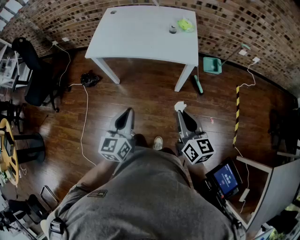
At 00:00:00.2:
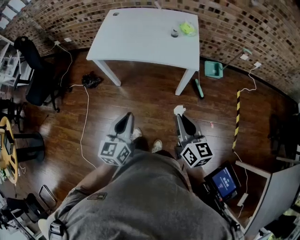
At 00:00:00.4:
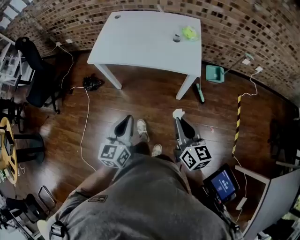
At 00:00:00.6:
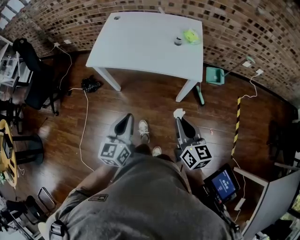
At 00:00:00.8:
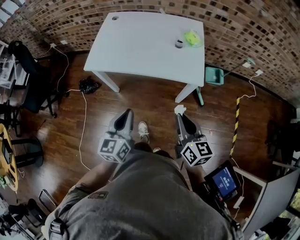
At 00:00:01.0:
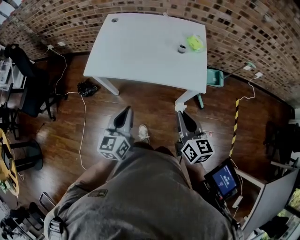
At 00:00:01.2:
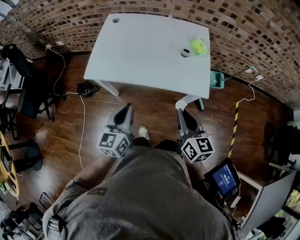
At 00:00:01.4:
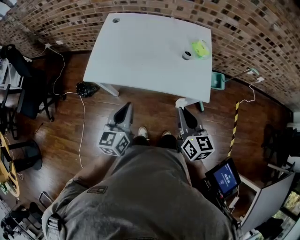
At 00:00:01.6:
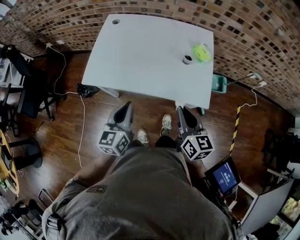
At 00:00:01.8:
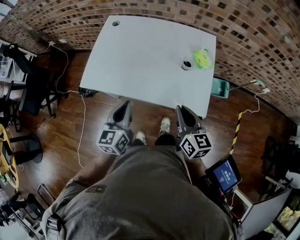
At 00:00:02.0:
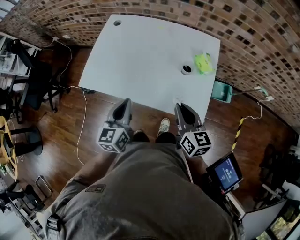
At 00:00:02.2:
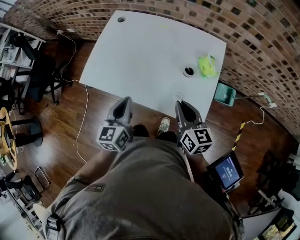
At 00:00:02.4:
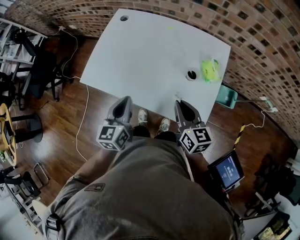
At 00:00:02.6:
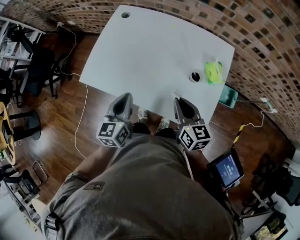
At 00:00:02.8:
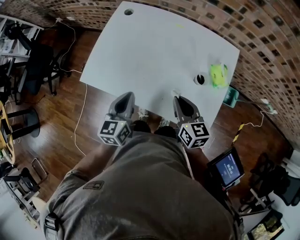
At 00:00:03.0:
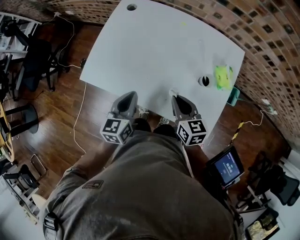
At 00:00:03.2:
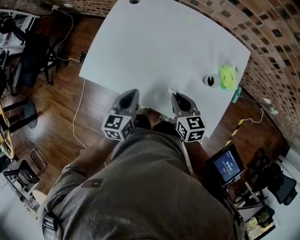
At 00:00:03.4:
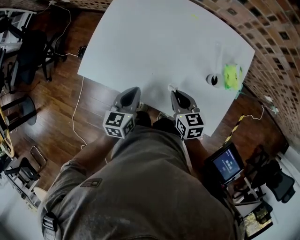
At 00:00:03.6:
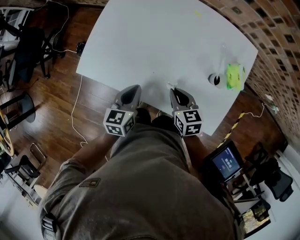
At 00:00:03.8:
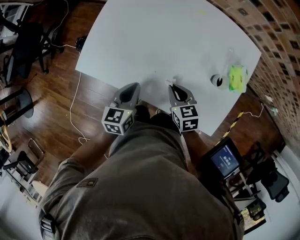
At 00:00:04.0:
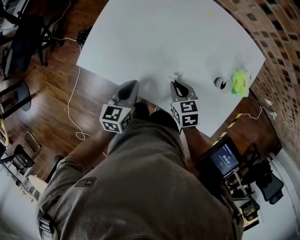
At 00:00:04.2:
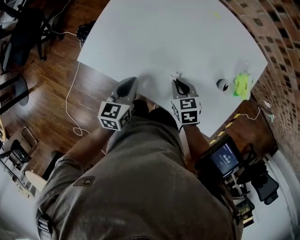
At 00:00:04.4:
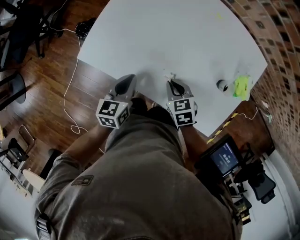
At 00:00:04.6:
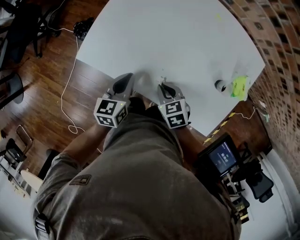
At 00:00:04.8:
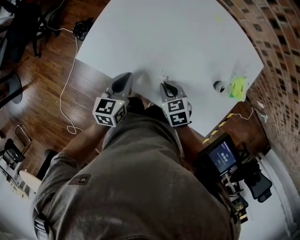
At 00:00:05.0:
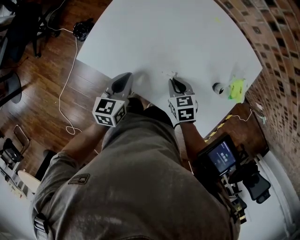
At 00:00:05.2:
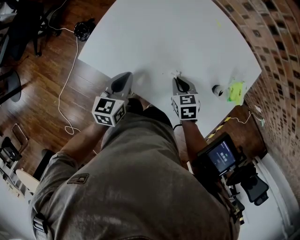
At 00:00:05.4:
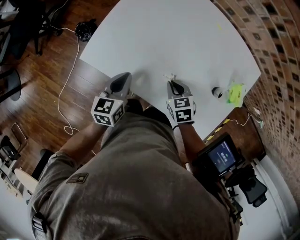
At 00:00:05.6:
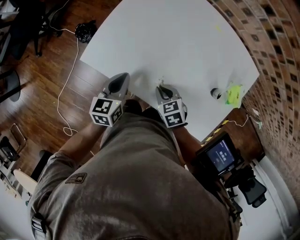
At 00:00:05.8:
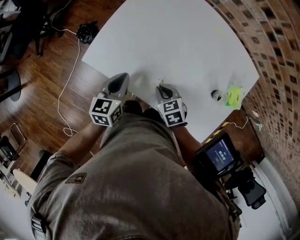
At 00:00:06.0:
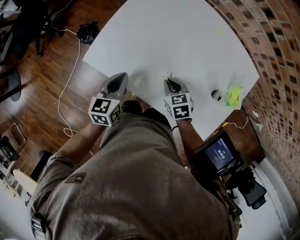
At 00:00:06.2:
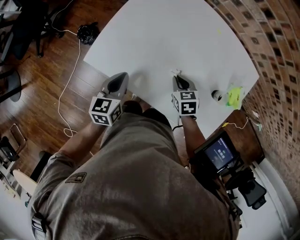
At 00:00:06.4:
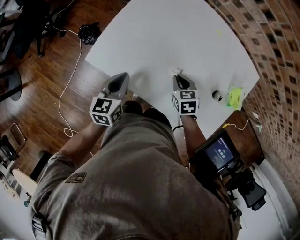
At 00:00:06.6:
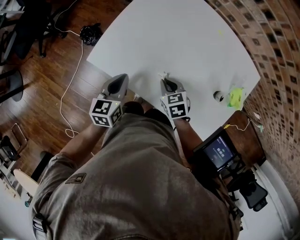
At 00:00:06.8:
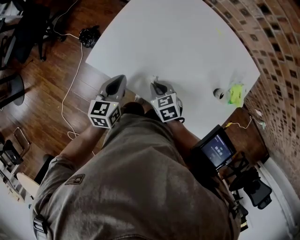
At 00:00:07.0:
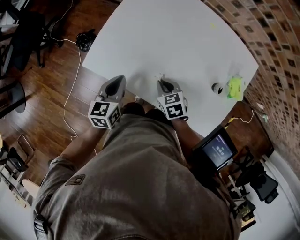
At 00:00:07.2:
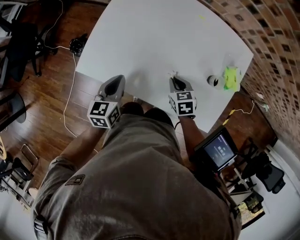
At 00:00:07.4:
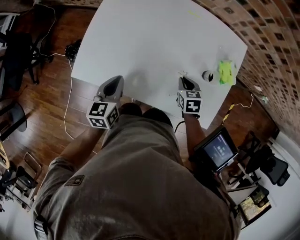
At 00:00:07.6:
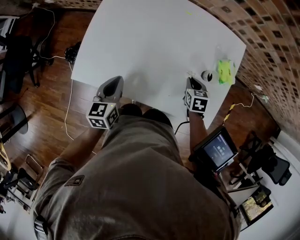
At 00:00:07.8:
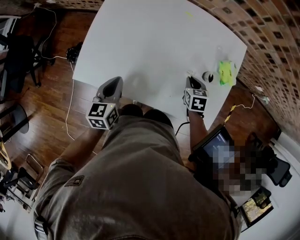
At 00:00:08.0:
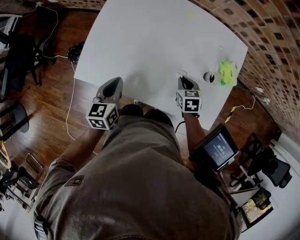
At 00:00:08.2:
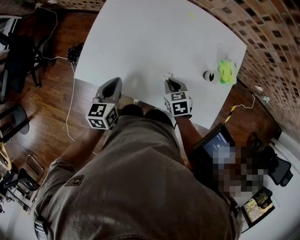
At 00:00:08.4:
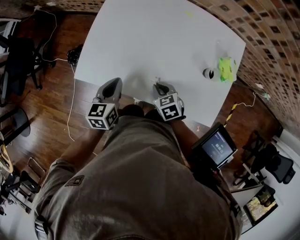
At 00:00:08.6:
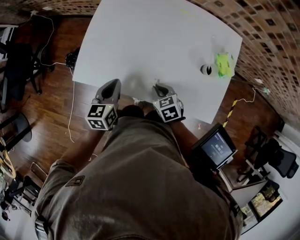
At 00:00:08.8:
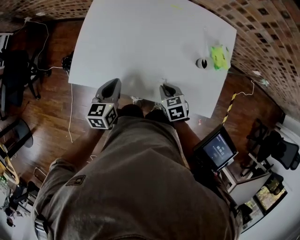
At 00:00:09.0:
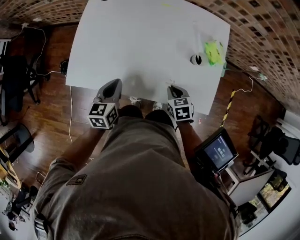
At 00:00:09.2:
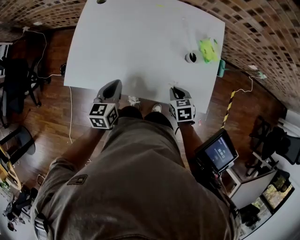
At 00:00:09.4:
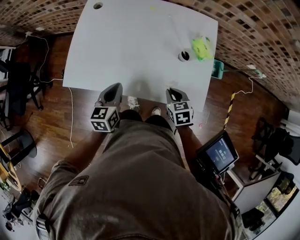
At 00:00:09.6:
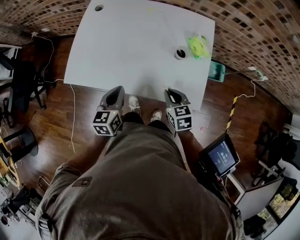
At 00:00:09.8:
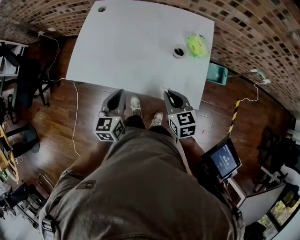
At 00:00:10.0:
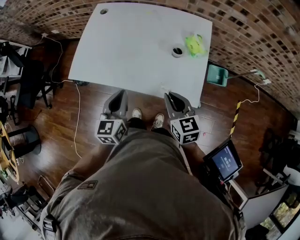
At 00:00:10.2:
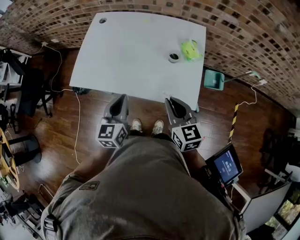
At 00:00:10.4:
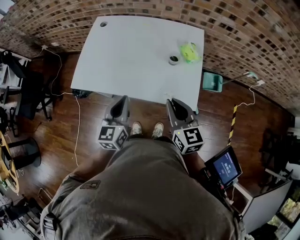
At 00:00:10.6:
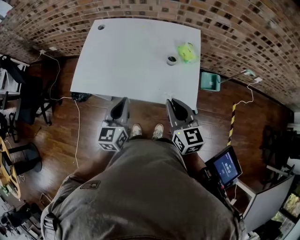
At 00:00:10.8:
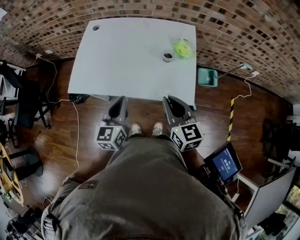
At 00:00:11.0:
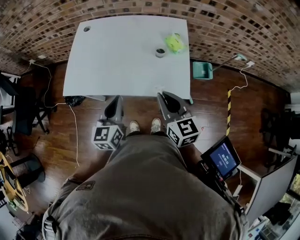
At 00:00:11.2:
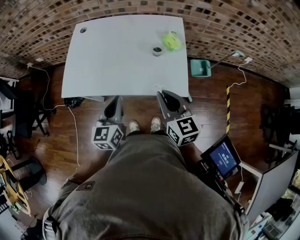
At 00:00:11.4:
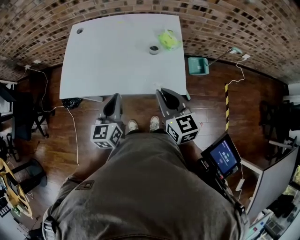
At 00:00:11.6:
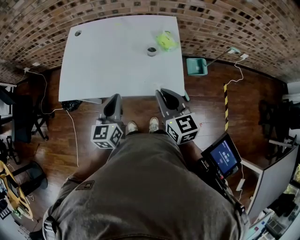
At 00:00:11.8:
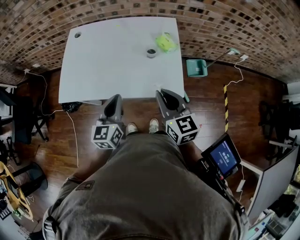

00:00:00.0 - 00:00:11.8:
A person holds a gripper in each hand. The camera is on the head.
00:00:00.0 - 00:00:01.4: Both grippers travel together forward, roughly 25 cm.
00:00:01.4 - 00:00:03.0: Both grippers travel together forward and downward, about 20 cm. The right gripper rotates some 30 degrees.
00:00:03.0 - 00:00:04.4: The two grippers go approximately 15 cm downward and to the left. The right gripper rotates approximately 30 degrees.
00:00:04.4 - 00:00:06.0: The left gripper ends up some 5 cm from where it was.
00:00:06.0 - 00:00:07.4: The right gripper shifts by some 15 cm, and swivels some 30 degrees.
00:00:07.4 - 00:00:08.8: The right gripper swings left and right, roughly 20 cm each way, with 2 reversals.
00:00:08.8 - 00:00:10.4: Both grippers travel together upward, backward and to the right, some 25 cm. The left gripper changes its angle by roughly 20 degrees; the right gripper tilts its fingers about 40 degrees upward.
00:00:10.4 - 00:00:11.8: The grippers make only small movements.

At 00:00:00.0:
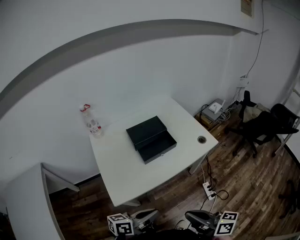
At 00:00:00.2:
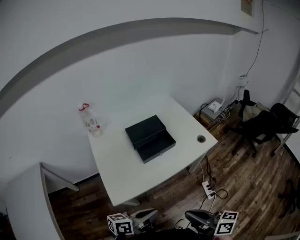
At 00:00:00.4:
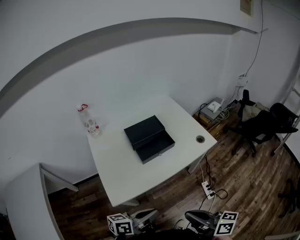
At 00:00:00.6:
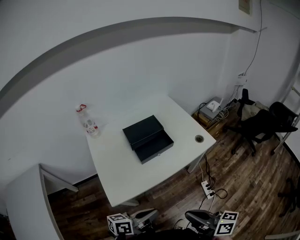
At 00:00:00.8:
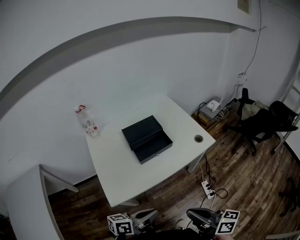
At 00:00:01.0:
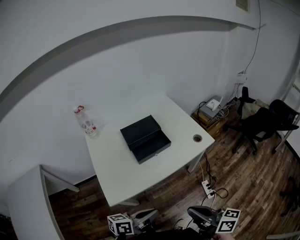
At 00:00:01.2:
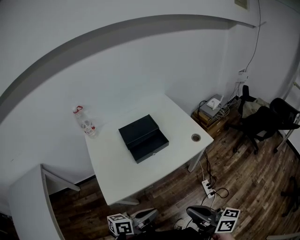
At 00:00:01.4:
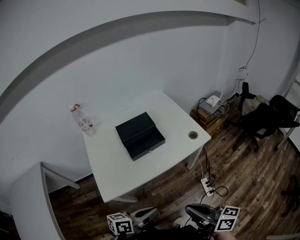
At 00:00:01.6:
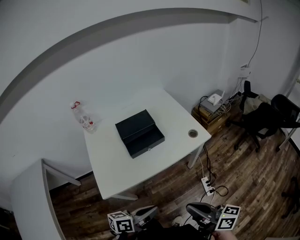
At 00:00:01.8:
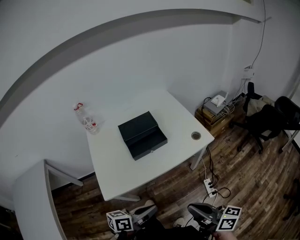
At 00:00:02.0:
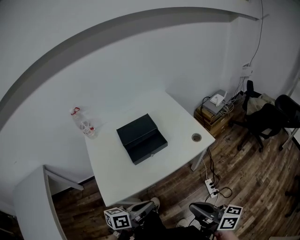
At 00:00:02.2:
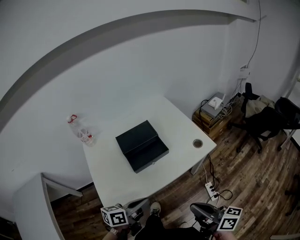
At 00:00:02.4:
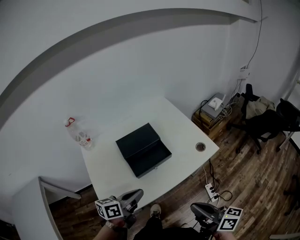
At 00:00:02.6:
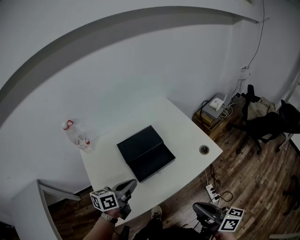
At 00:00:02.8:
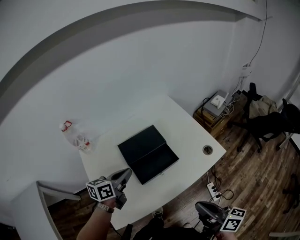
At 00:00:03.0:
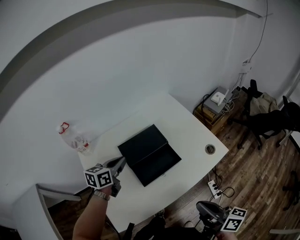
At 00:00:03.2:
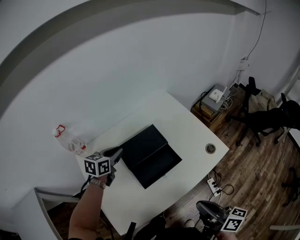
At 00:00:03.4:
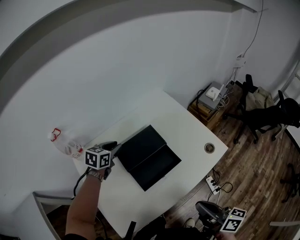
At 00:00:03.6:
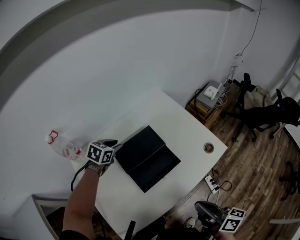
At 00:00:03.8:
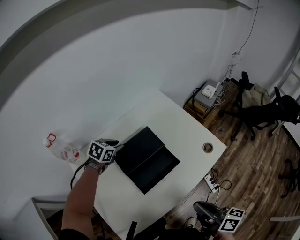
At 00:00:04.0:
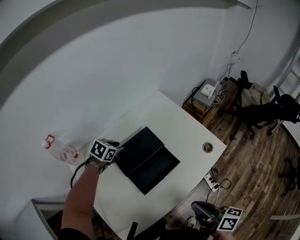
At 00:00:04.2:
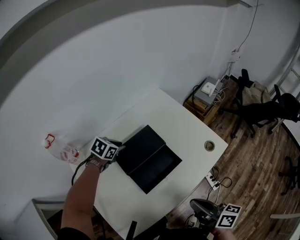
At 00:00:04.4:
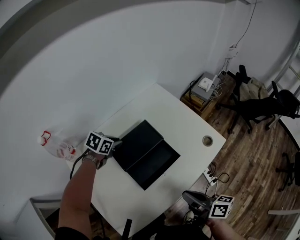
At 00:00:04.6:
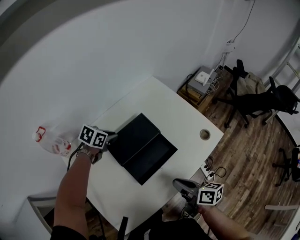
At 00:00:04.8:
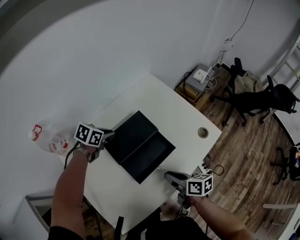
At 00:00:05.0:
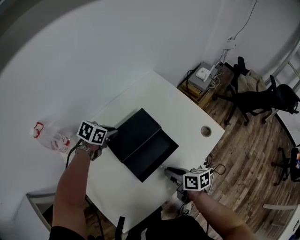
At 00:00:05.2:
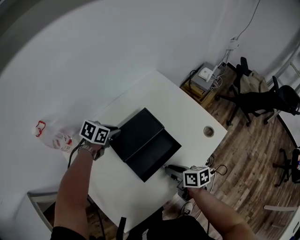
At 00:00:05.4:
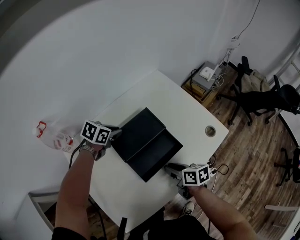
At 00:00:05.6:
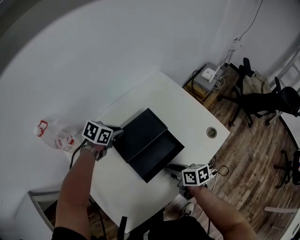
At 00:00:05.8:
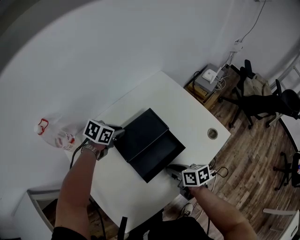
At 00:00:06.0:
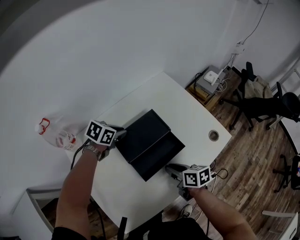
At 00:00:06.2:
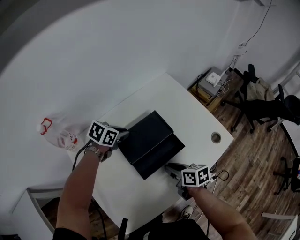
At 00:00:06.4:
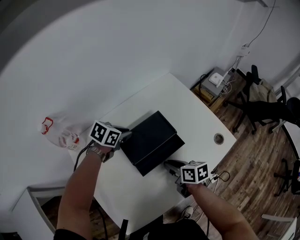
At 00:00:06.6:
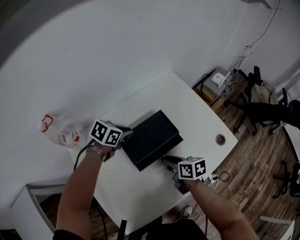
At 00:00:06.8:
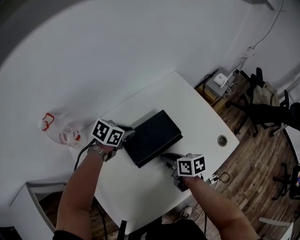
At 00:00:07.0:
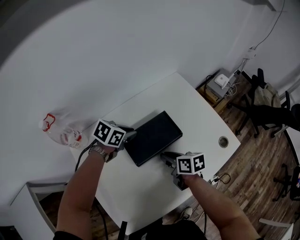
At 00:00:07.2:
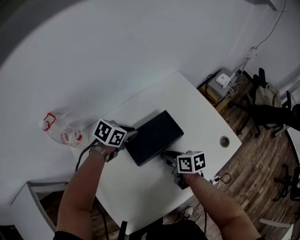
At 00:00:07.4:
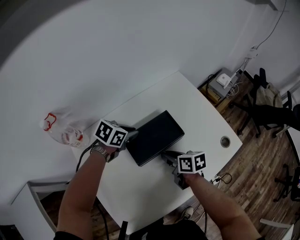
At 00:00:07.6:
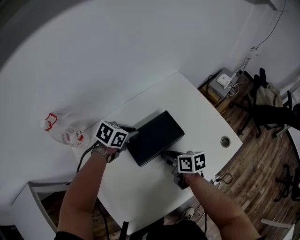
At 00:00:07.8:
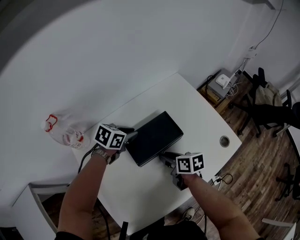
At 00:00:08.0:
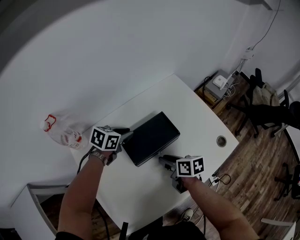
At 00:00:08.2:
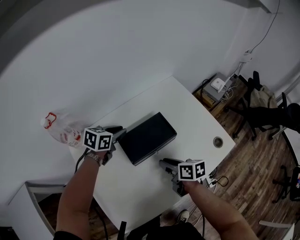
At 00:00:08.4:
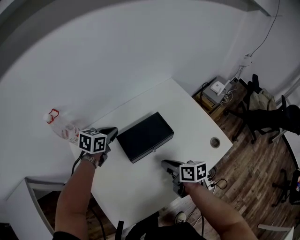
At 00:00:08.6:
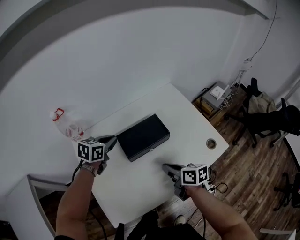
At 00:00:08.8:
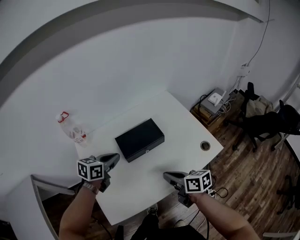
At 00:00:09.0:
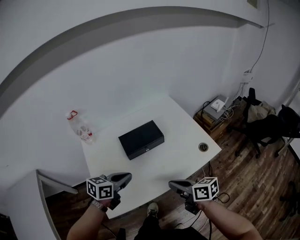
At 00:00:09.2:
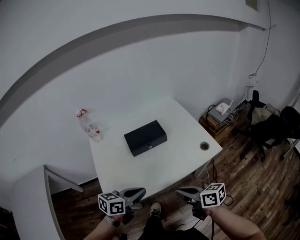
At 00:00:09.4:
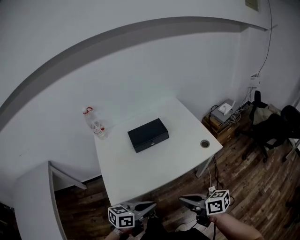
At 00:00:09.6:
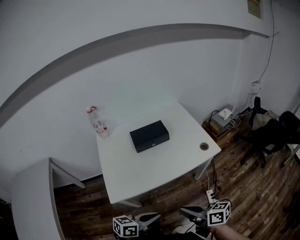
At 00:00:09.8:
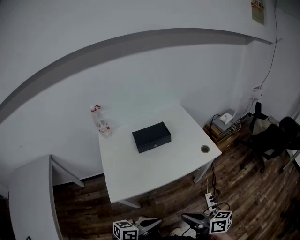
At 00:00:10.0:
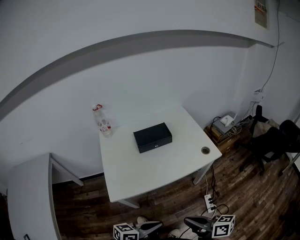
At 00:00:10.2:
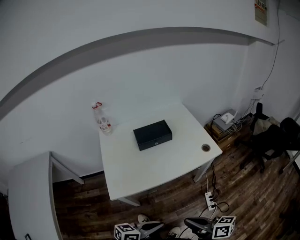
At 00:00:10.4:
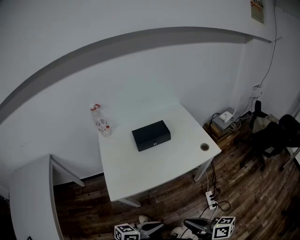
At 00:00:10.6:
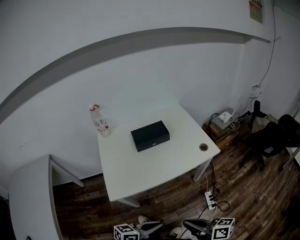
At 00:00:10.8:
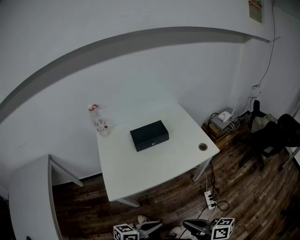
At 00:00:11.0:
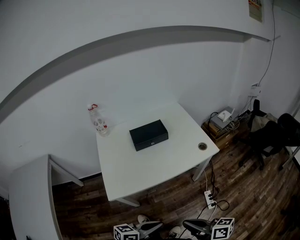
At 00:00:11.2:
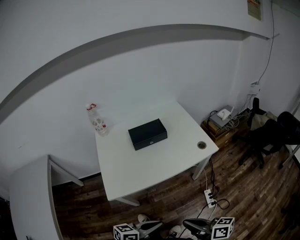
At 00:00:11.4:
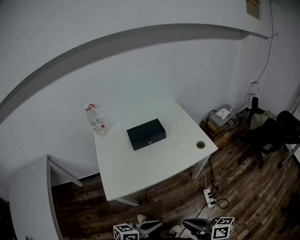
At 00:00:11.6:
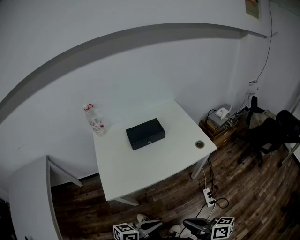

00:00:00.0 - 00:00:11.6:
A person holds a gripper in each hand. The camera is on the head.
00:00:00.0 - 00:00:01.4: Both grippers travel together to the right, some 5 cm.
00:00:01.4 - 00:00:02.8: The left gripper travels forward and to the left by approximately 40 cm, and turns by roughly 20 degrees. Meanwhile the right gripper is displaced forward by some 15 cm.
00:00:02.8 - 00:00:04.4: The right gripper travels to the left, downward and forward by about 15 cm, while the left gripper travels forward and downward by roughly 20 cm, and tilts its fingers some 30 degrees downward.
00:00:04.4 - 00:00:05.8: The right gripper moves downward, forward and to the left, about 15 cm, and turns by approximately 30 degrees.
00:00:05.8 - 00:00:07.2: The right gripper travels forward and to the left by some 10 cm.
00:00:07.2 - 00:00:08.8: The left gripper goes some 20 cm backward and upward, and changes its angle by about 30 degrees. Meanwhile the right gripper shifts roughly 20 cm backward, upward and to the right.
00:00:08.8 - 00:00:10.2: The grippers both shift backward by about 40 cm. The left gripper rotates about 30 degrees.
00:00:10.2 - 00:00:11.6: There are only small adjustments of the grippers.
